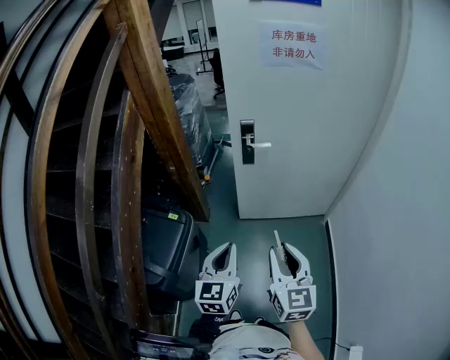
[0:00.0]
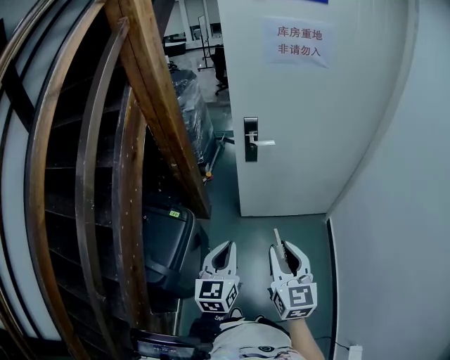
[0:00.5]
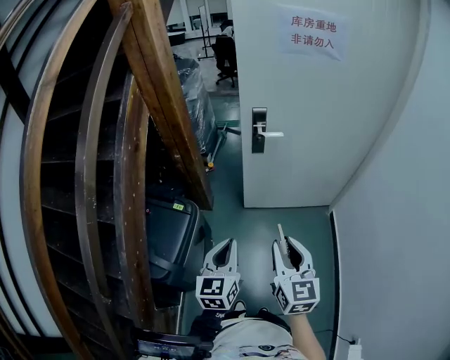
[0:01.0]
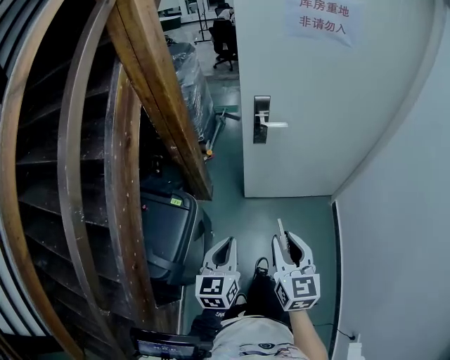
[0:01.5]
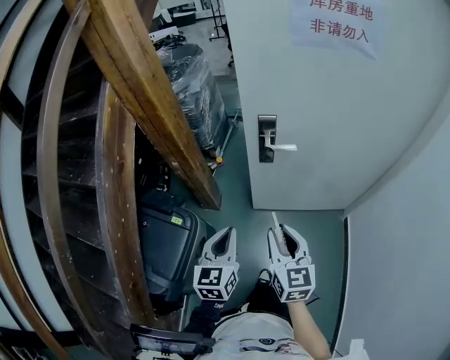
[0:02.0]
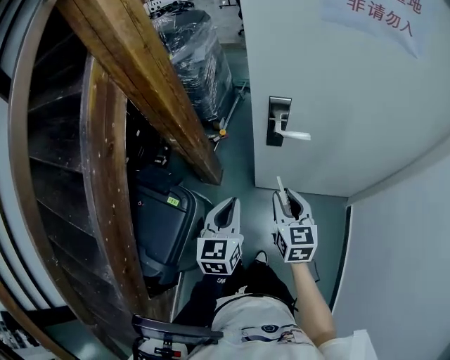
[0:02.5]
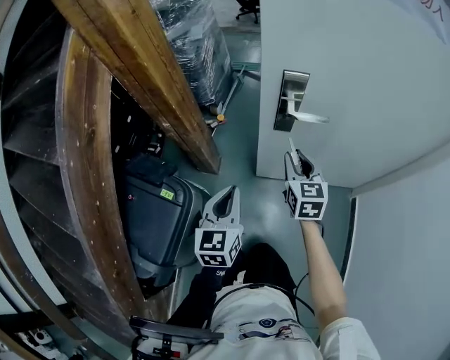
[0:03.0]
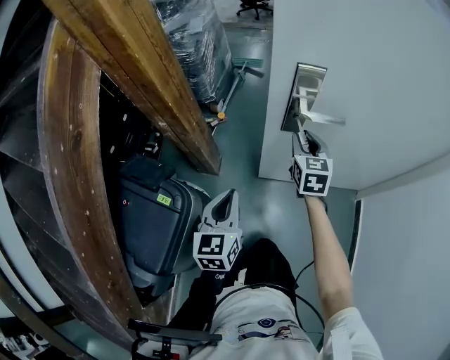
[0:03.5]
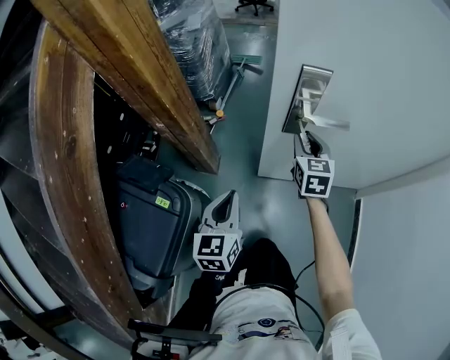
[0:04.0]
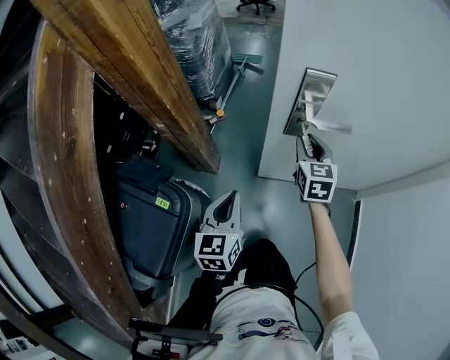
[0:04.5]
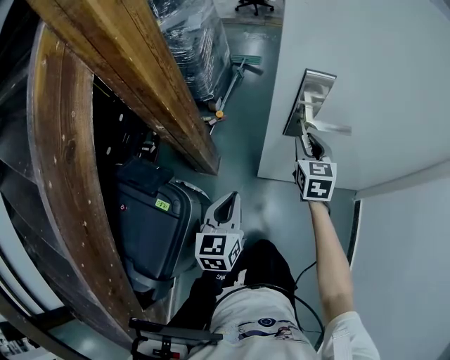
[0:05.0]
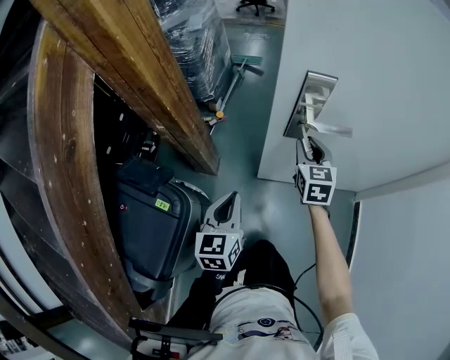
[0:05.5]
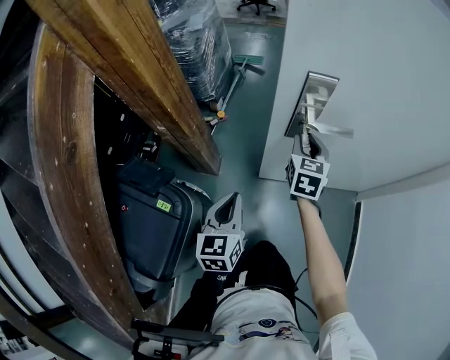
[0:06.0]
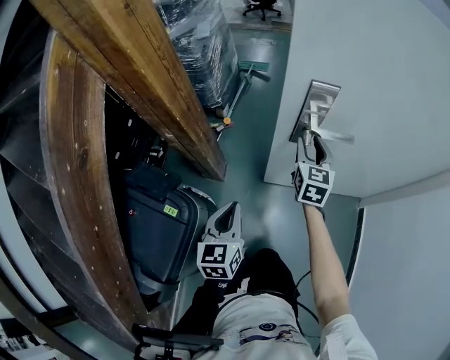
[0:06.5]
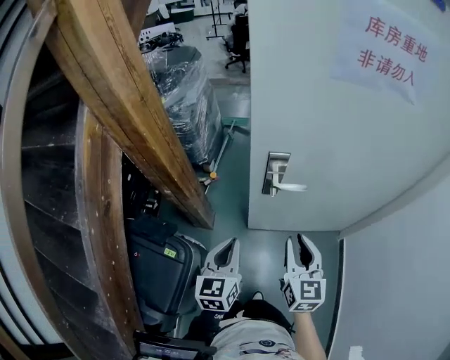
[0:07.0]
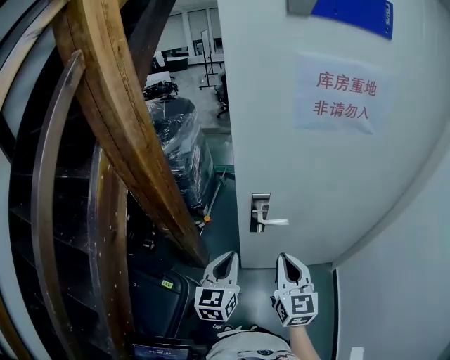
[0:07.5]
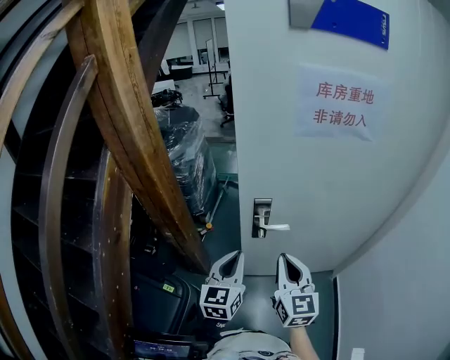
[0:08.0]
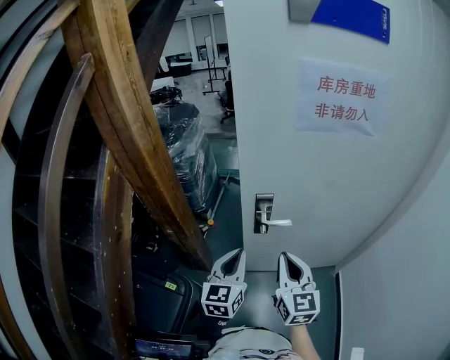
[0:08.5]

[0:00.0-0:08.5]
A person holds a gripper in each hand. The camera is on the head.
0:00.0 to 0:02.0: The two grippers go approximately 20 cm forward.
0:02.0 to 0:04.0: The left gripper is displaced downward and forward by approximately 25 cm. The right gripper shifts approximately 40 cm forward and downward.
0:04.0 to 0:06.5: The grippers stay close to where they were, moving slightly.
0:06.5 to 0:08.5: The left gripper shifts roughly 25 cm upward and to the right, and rotates about 20 degrees, while the right gripper is displaced upward and backward by approximately 35 cm, and closes its fingers.

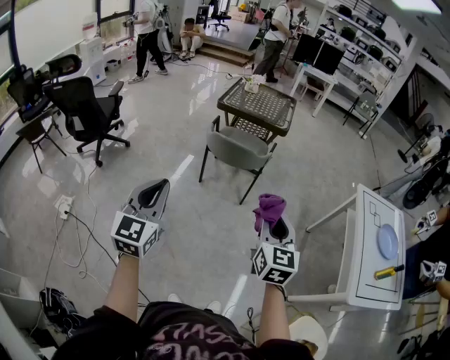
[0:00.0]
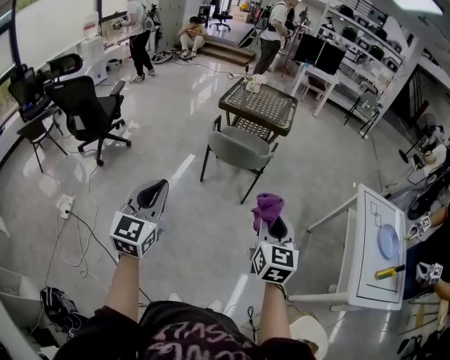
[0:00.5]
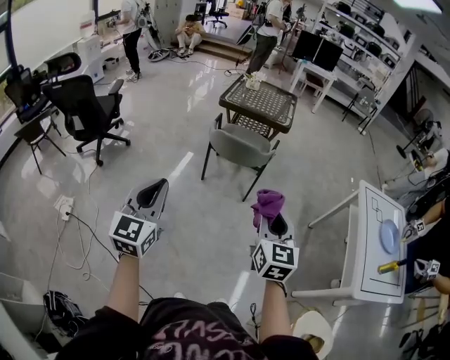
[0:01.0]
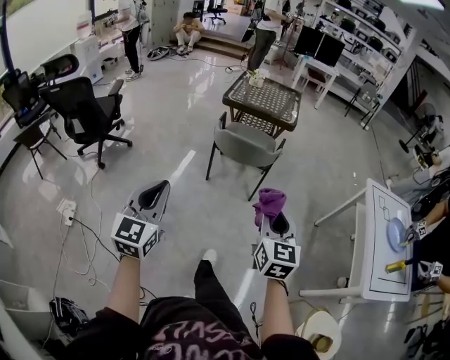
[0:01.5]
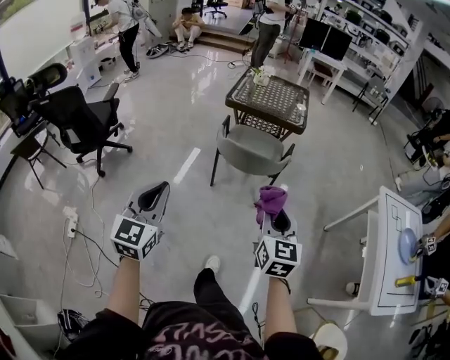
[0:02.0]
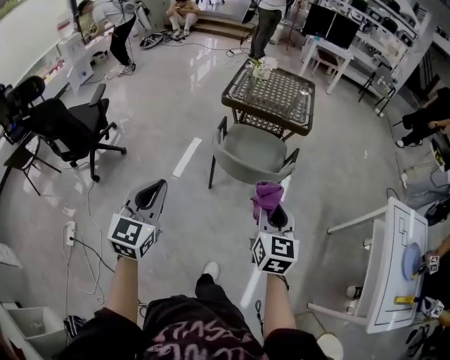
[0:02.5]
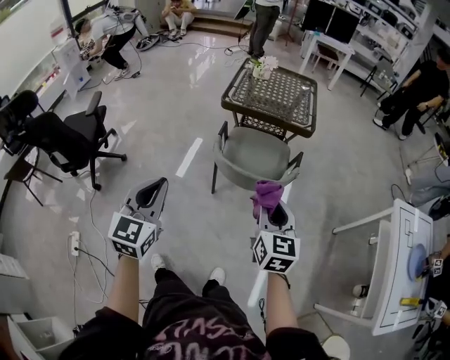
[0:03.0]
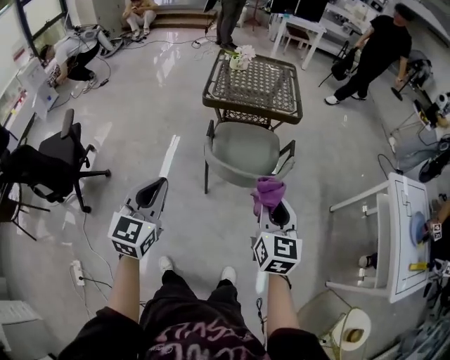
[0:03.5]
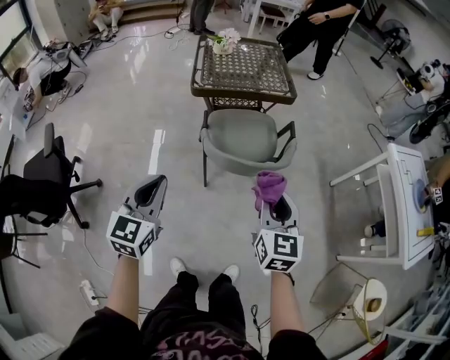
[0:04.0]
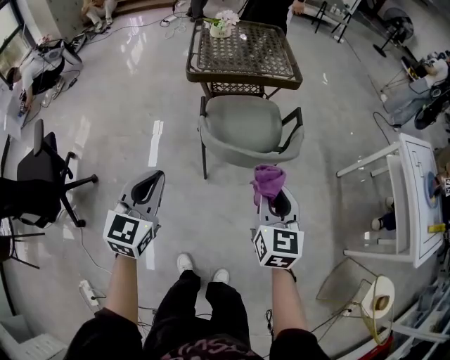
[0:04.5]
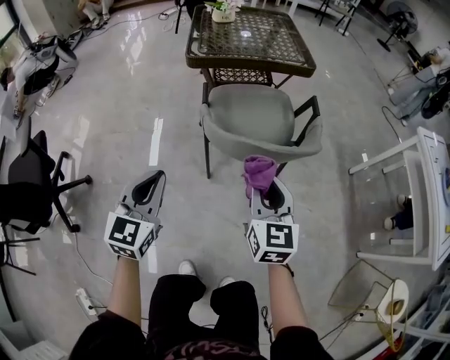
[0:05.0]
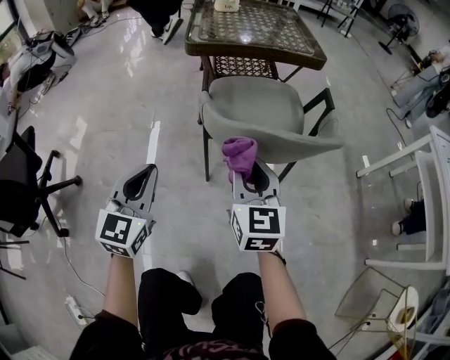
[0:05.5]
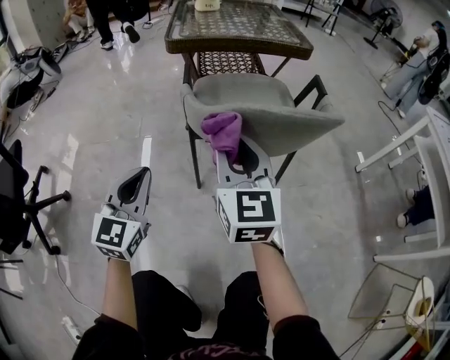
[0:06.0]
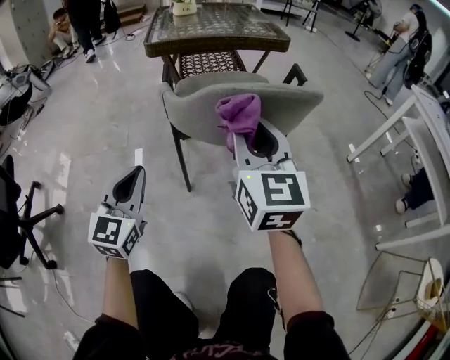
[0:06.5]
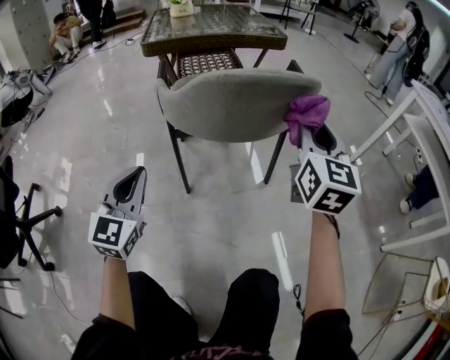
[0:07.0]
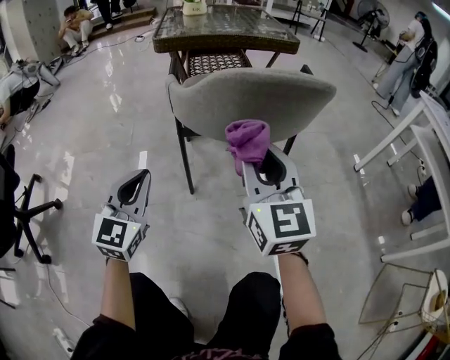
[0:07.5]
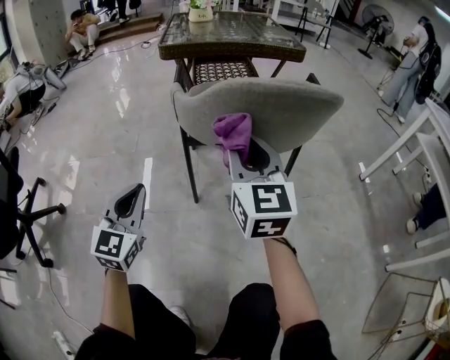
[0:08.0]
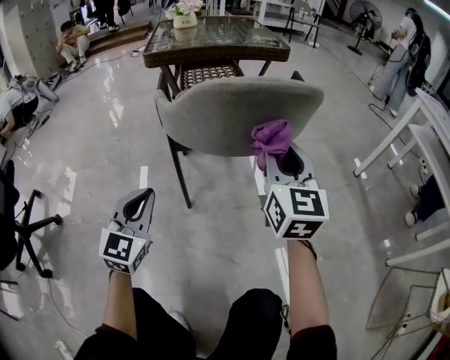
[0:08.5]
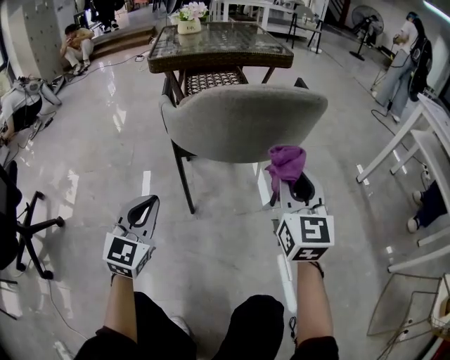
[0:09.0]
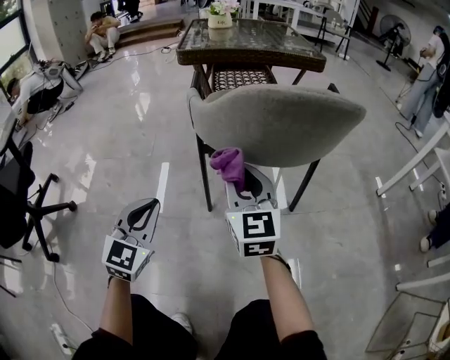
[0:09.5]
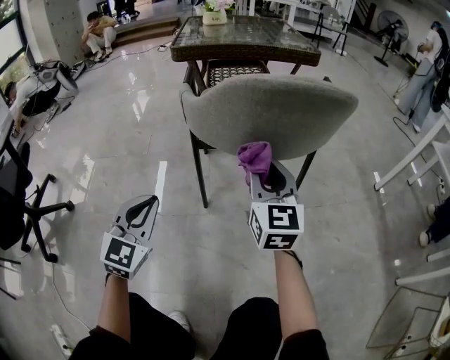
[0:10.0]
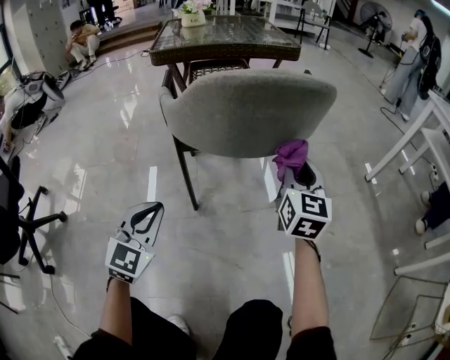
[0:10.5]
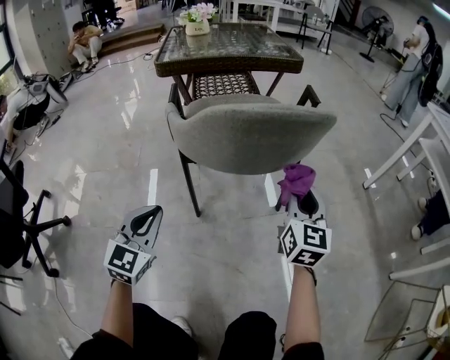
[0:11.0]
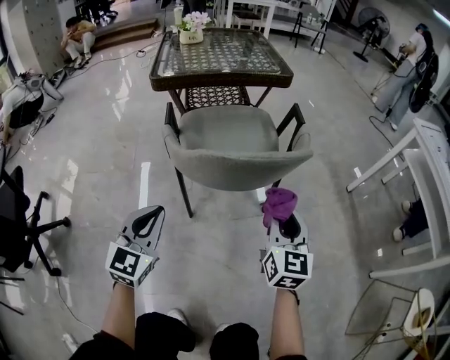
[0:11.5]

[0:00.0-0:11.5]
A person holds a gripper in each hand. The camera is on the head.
0:00.0 to 0:02.0: Both grippers move forward and to the left, about 20 cm.
0:02.0 to 0:04.0: Both grippers travel together forward and to the left, some 35 cm. The left gripper changes its angle by about 20 degrees; the right gripper rotates some 20 degrees.
0:04.0 to 0:06.0: The left gripper travels downward by approximately 35 cm. Meanwhile the right gripper heads downward and forward, covering roughly 30 cm.
0:06.0 to 0:07.5: The right gripper moves to the right, about 10 cm, while the left gripper moves downward, some 5 cm.
0:07.5 to 0:09.5: The left gripper travels downward by some 5 cm; the right gripper travels downward, to the left and forward by roughly 15 cm.
0:09.5 to 0:11.5: The right gripper heads to the right and upward, covering roughly 20 cm, and rotates about 30 degrees. The left gripper moves upward and to the right, approximately 15 cm.

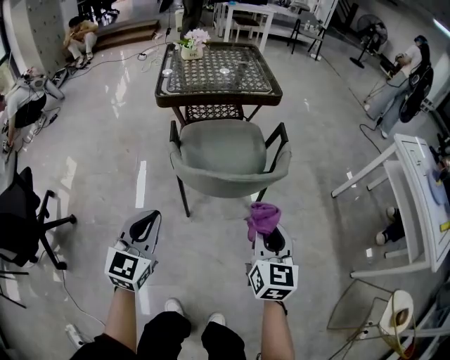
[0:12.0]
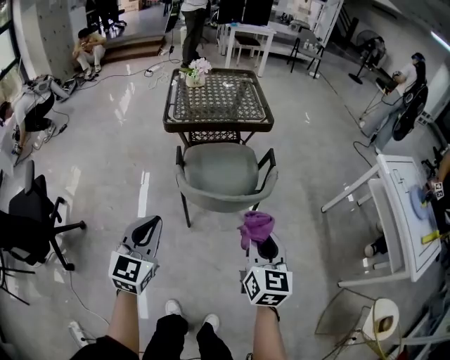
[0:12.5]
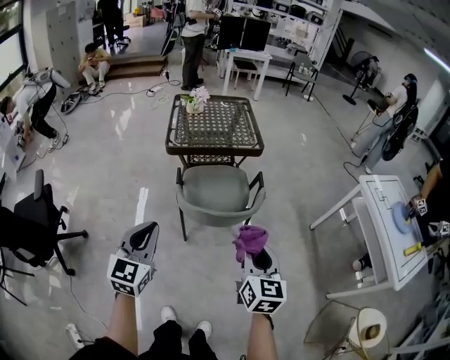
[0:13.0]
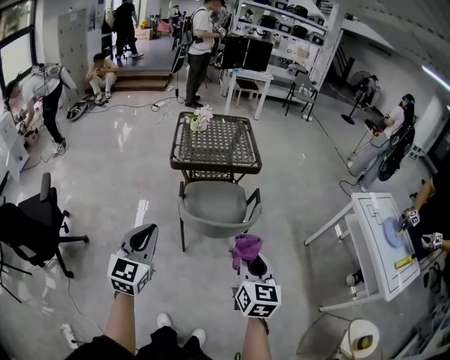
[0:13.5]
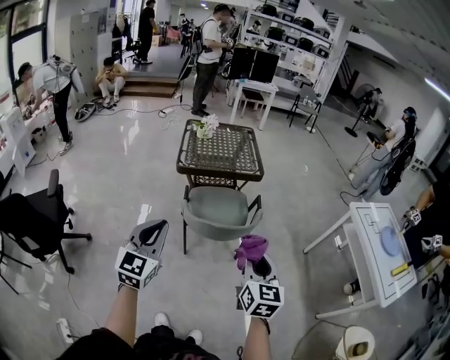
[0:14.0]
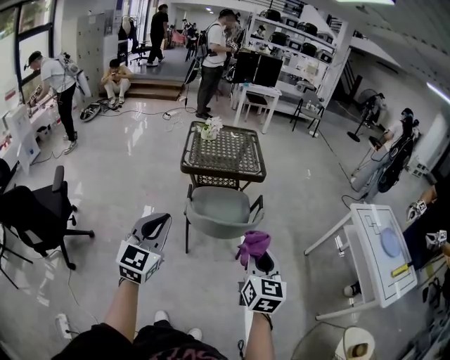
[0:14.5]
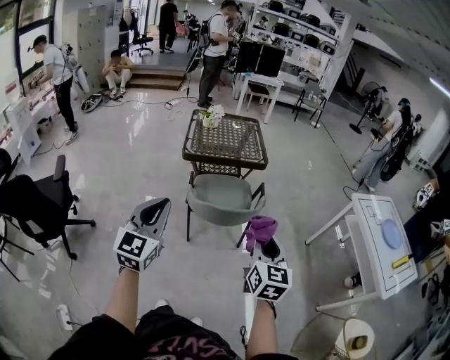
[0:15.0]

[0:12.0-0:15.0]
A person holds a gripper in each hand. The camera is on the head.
0:12.0 to 0:13.5: The grippers both shift upward by about 30 cm.
0:13.5 to 0:15.0: The left gripper goes about 10 cm upward and backward, while the right gripper shifts by approximately 5 cm.

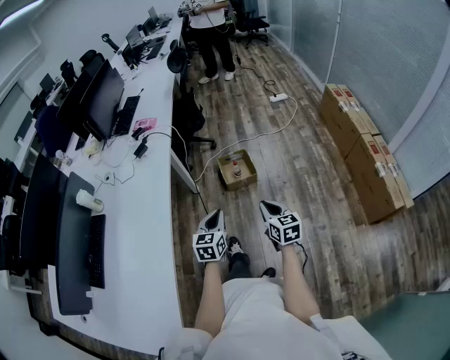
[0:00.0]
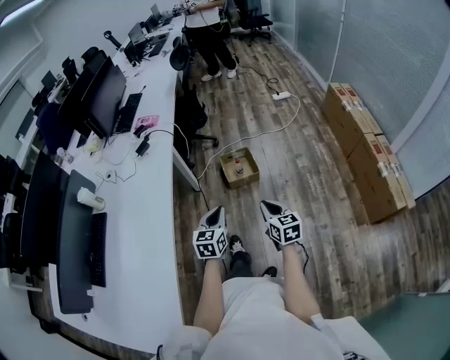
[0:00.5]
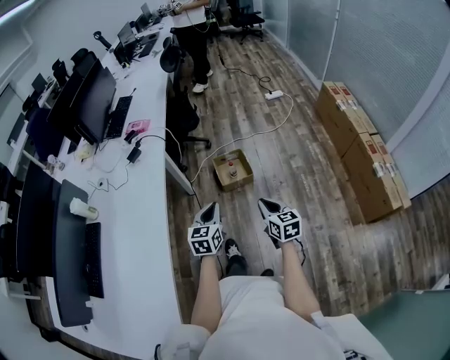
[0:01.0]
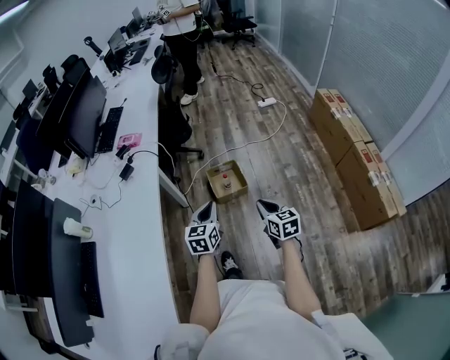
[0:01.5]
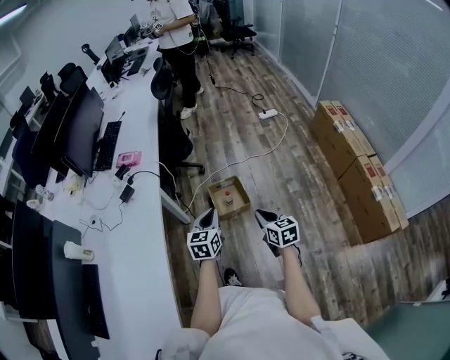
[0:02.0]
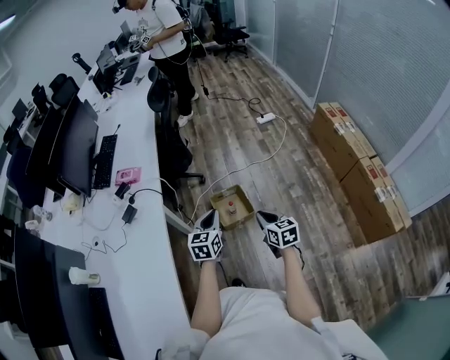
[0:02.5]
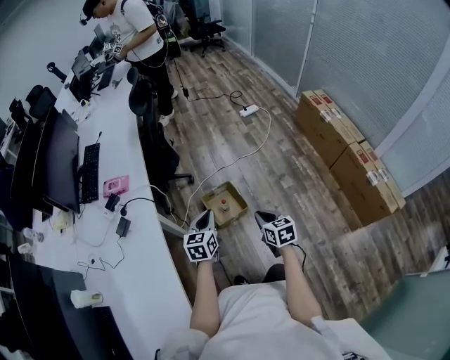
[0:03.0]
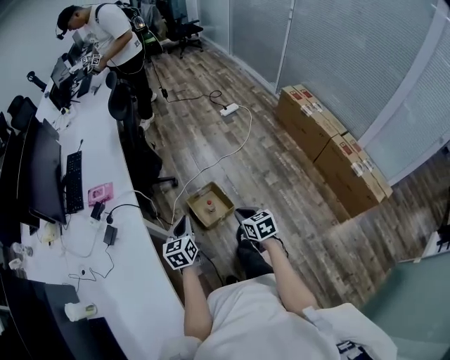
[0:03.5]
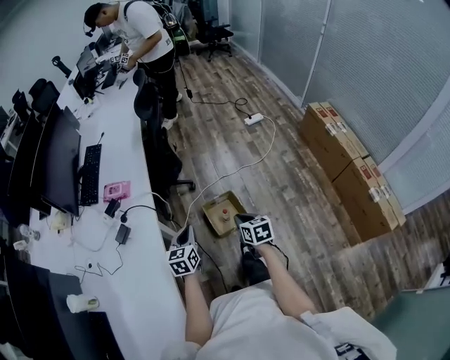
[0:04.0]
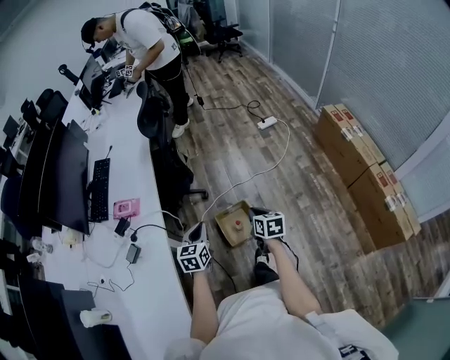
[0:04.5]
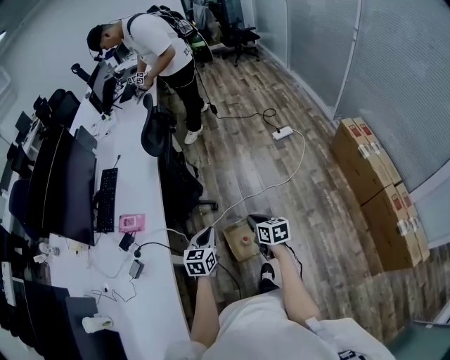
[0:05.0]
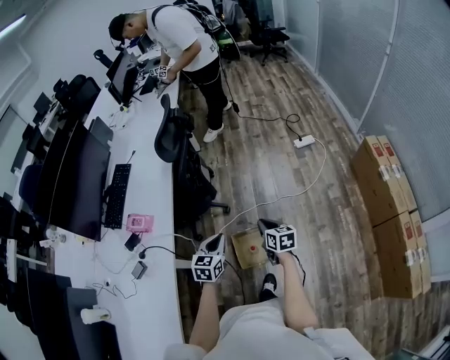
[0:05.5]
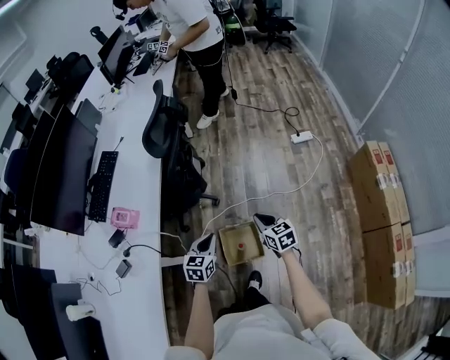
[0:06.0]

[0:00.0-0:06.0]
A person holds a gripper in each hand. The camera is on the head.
0:00.0 to 0:02.0: Both grippers move forward, some 25 cm.
0:02.0 to 0:04.0: Both grippers travel together forward and to the left, roughly 20 cm.
0:04.0 to 0:06.0: The right gripper travels forward by about 35 cm, and rotates some 20 degrees. The left gripper goes roughly 30 cm forward and to the right.
